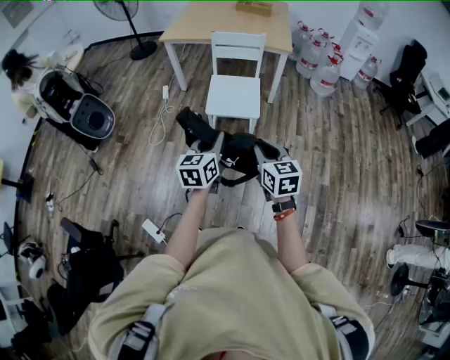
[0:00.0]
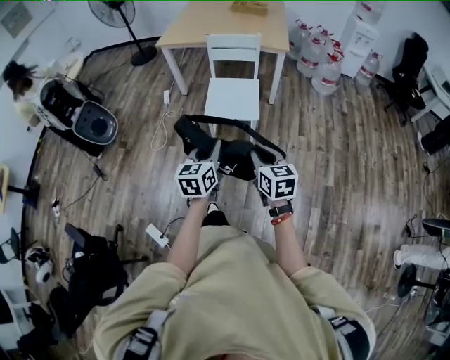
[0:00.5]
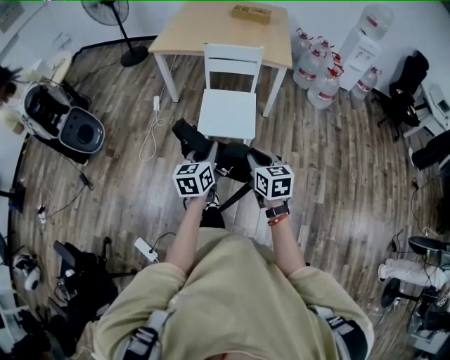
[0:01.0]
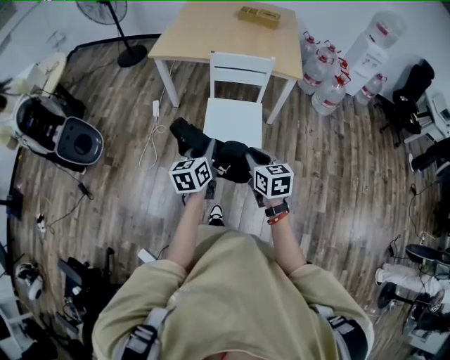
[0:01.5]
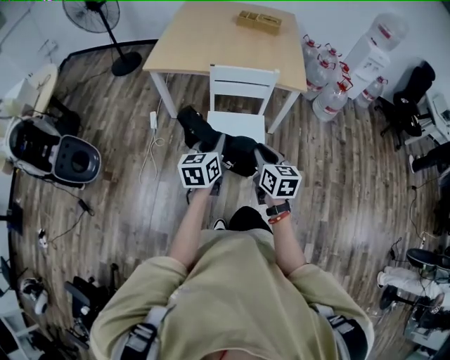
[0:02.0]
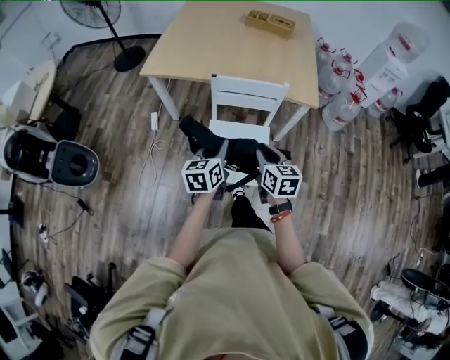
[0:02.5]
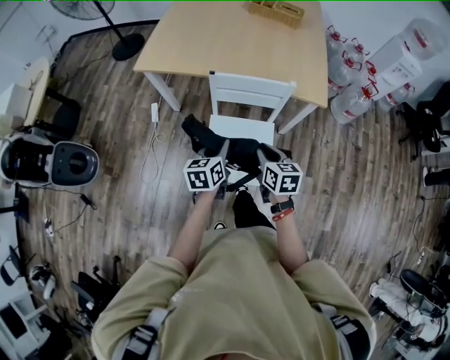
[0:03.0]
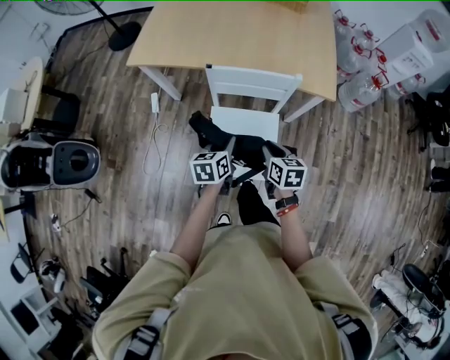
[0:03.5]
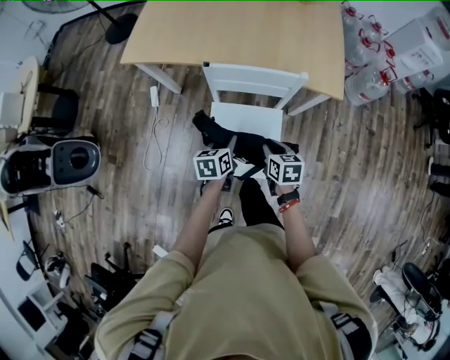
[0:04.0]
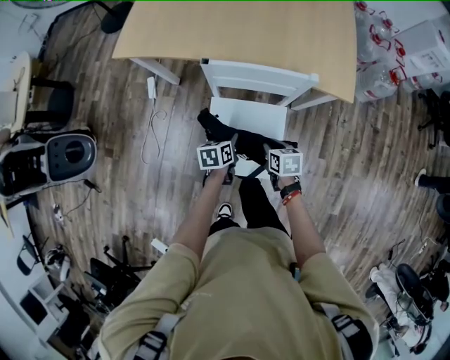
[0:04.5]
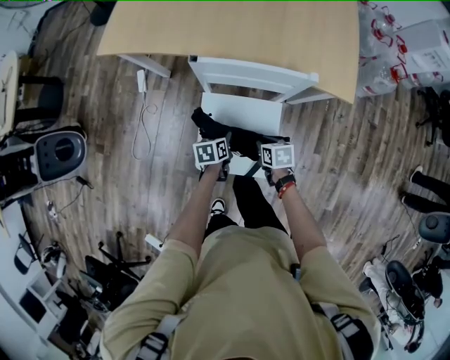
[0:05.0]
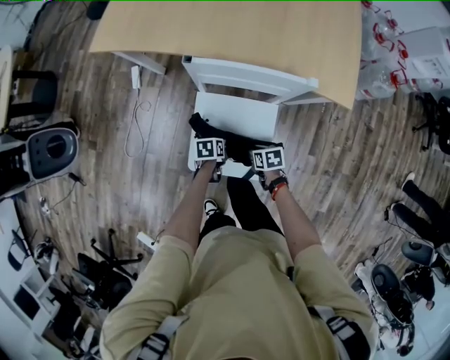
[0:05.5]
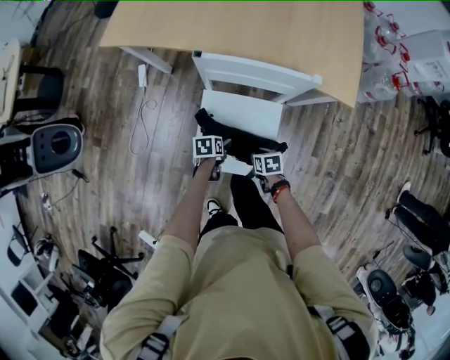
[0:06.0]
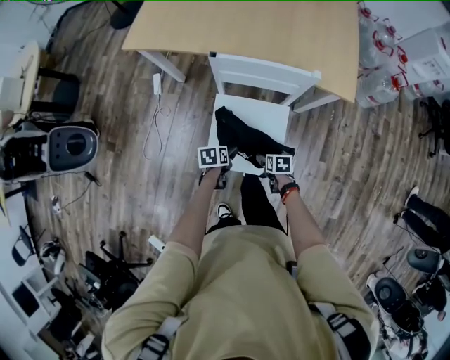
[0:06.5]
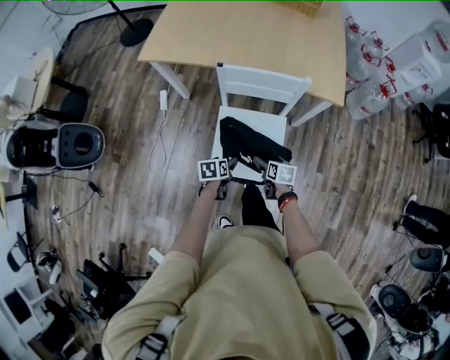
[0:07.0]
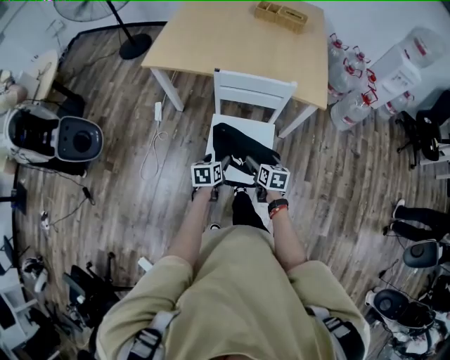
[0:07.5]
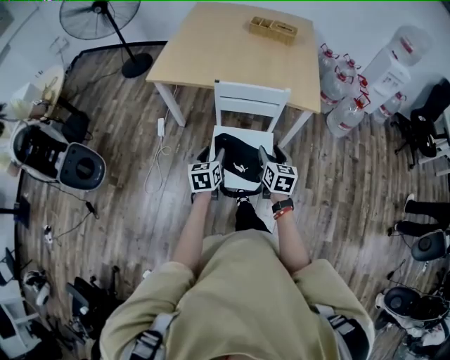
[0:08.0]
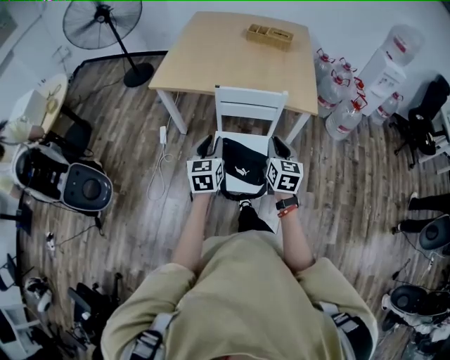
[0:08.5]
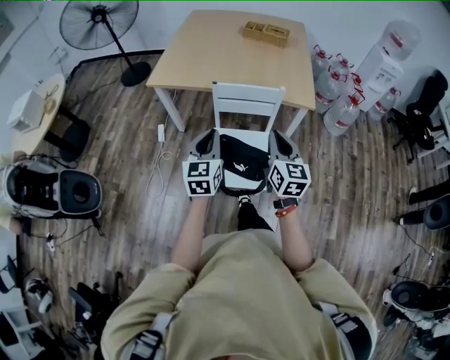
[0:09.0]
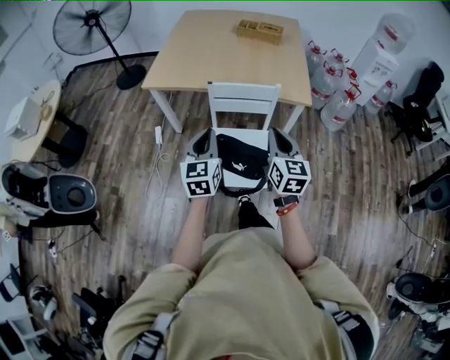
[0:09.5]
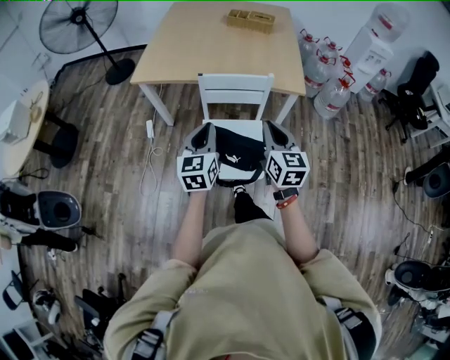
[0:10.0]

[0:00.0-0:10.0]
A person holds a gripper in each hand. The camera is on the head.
0:00.0 to 0:02.0: The pair of grippers is taken forward, approximately 50 cm.
0:02.0 to 0:04.0: Both grippers travel together forward and downward, about 35 cm. The right gripper changes its angle by roughly 30 degrees; the left gripper changes its angle by approximately 30 degrees.
0:04.0 to 0:06.0: Both grippers travel together downward, approximately 25 cm. The left gripper rotates approximately 30 degrees, and opens its fingers. Meanwhile the right gripper changes its angle by roughly 30 degrees.
0:06.0 to 0:08.0: The left gripper is displaced upward and backward by about 40 cm, and tilts its fingers about 30 degrees upward; the right gripper goes approximately 35 cm upward, tilts its fingers roughly 40 degrees upward, and opens, then closes again.
0:08.0 to 0:10.0: The grippers both shift upward by about 15 cm. The right gripper closes. The left gripper turns by about 20 degrees, and closes its fingers.

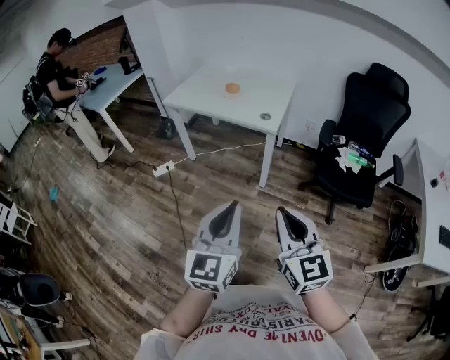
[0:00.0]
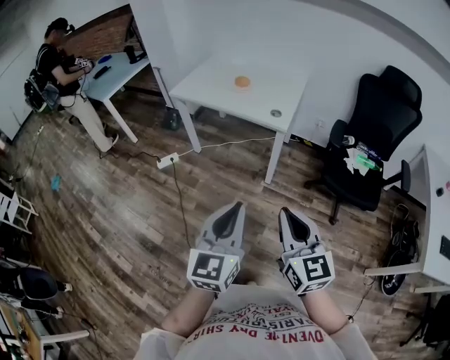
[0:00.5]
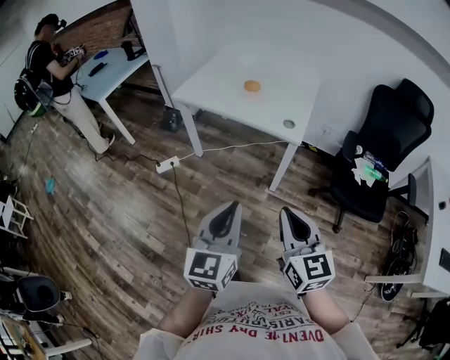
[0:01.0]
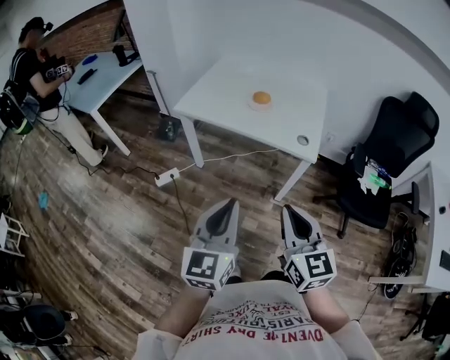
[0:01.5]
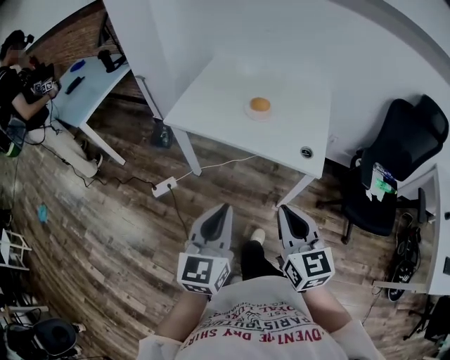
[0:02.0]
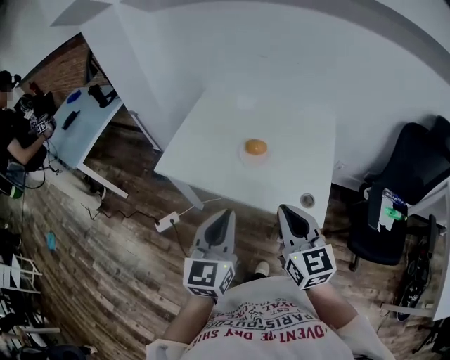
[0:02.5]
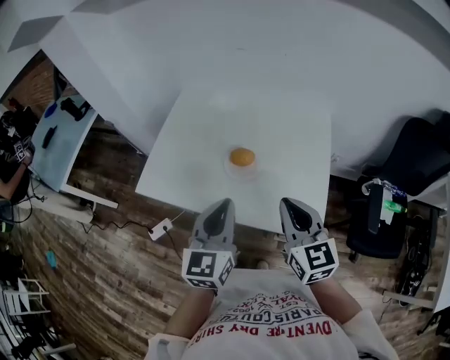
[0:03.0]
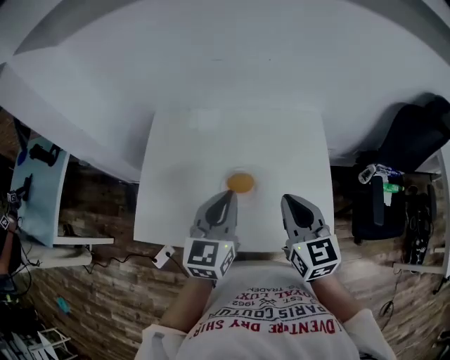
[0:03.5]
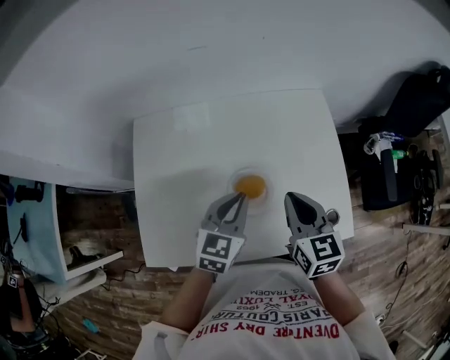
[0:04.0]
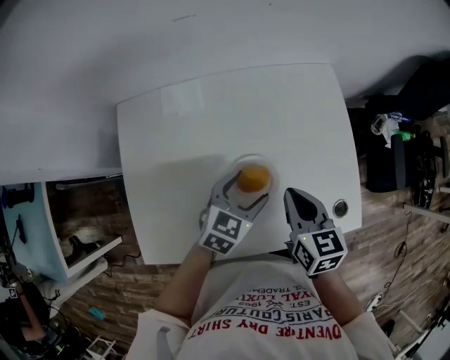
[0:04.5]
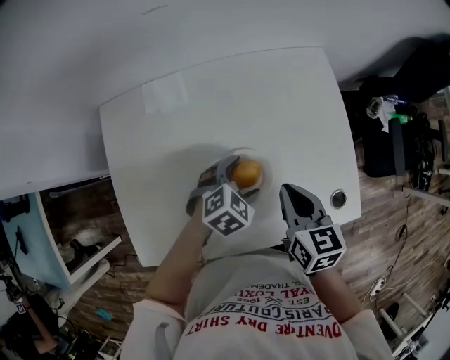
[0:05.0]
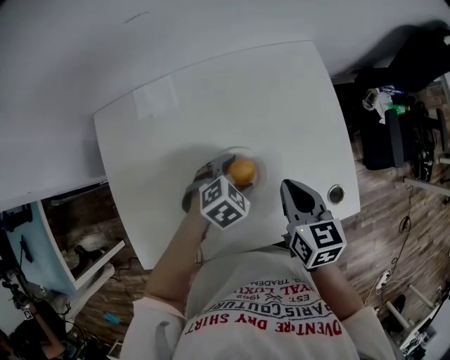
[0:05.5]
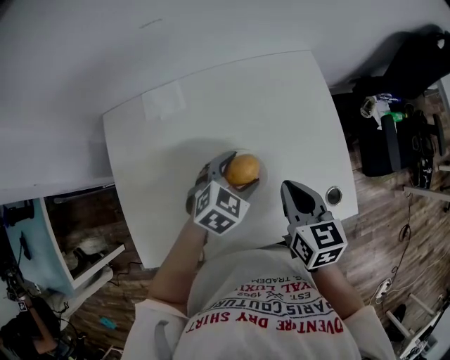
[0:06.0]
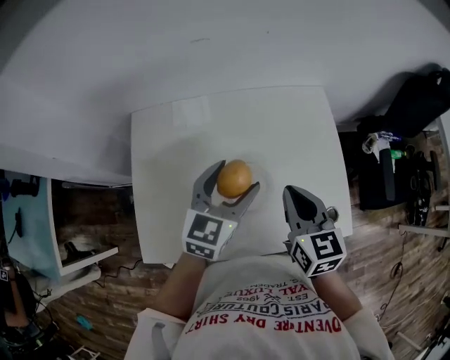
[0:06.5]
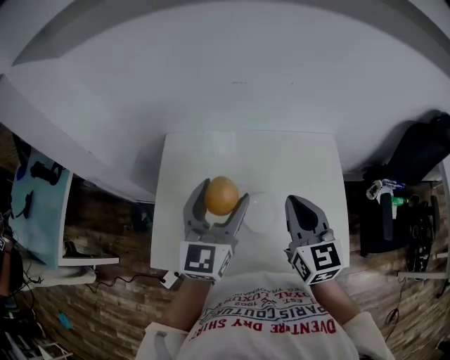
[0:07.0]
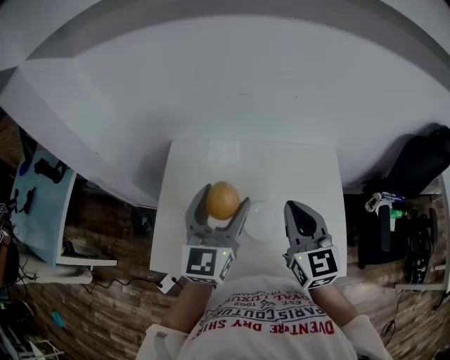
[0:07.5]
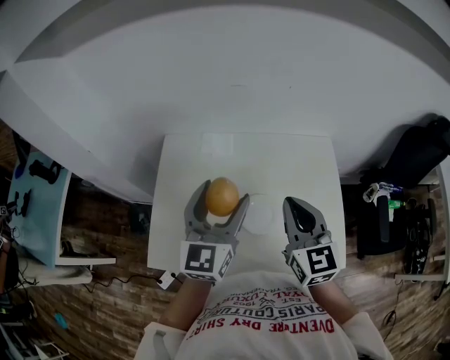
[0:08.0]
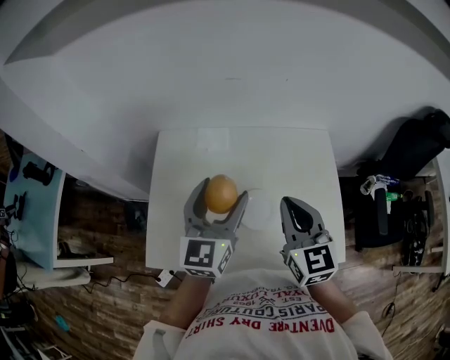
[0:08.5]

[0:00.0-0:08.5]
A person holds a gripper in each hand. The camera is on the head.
0:00.0 to 0:02.0: The two grippers travel together, forward and to the left, some 40 cm.
0:02.0 to 0:04.0: Both grippers are carried some 50 cm. The right gripper turns by roughly 30 degrees; the left gripper changes its angle by some 40 degrees.
0:04.0 to 0:06.5: The left gripper moves some 15 cm downward and comes back, and opens. Meanwhile the right gripper travels downward and back again, approximately 10 cm each way.
0:06.5 to 0:08.5: The left gripper moves upward and to the left, roughly 10 cm, and turns by approximately 30 degrees. The right gripper goes roughly 10 cm upward.

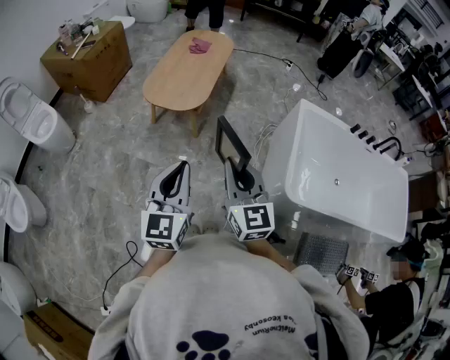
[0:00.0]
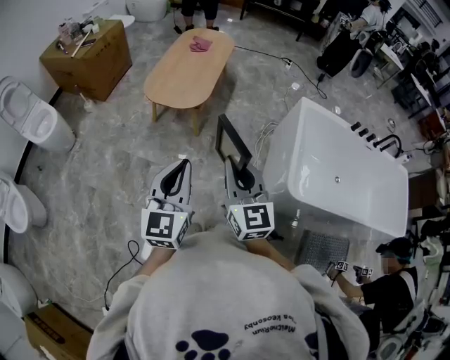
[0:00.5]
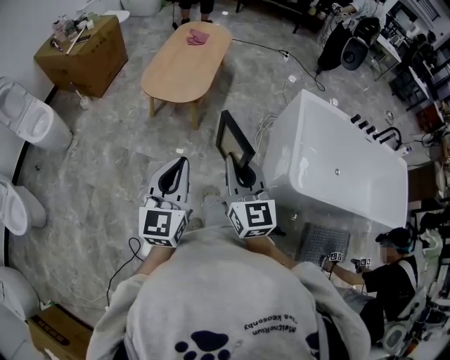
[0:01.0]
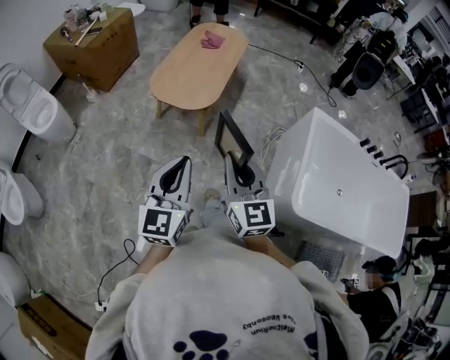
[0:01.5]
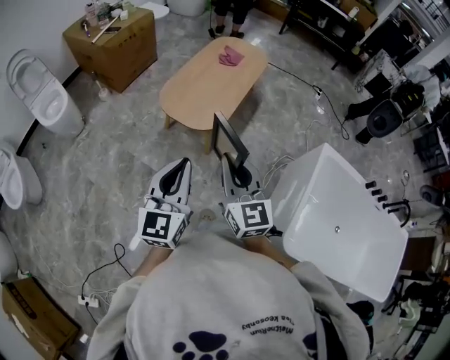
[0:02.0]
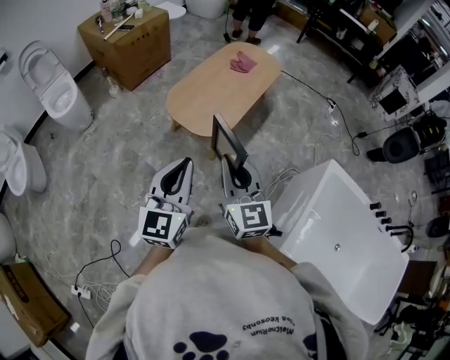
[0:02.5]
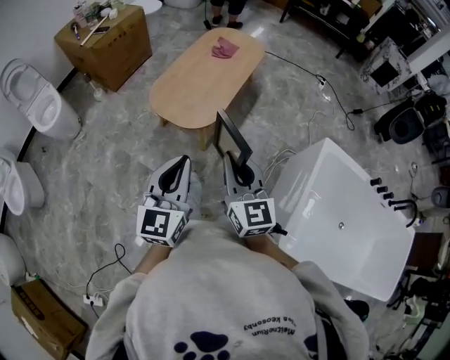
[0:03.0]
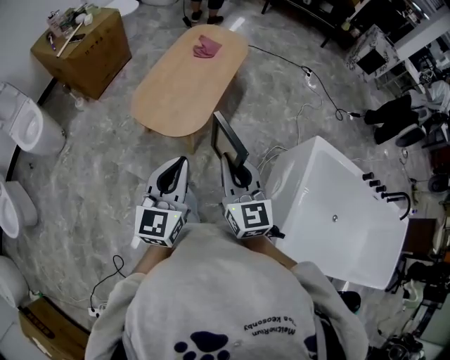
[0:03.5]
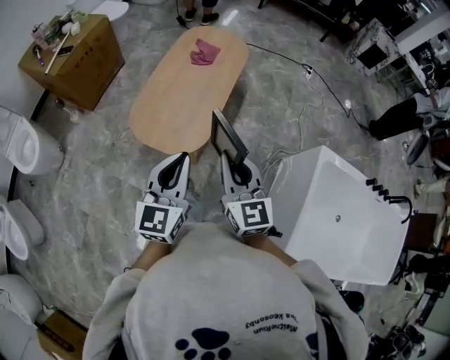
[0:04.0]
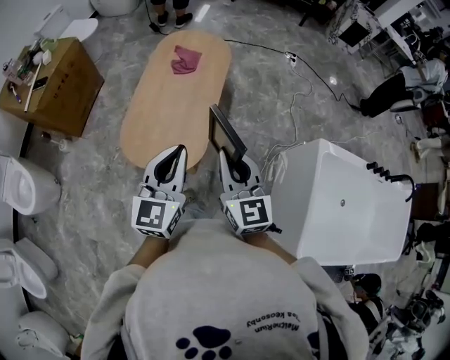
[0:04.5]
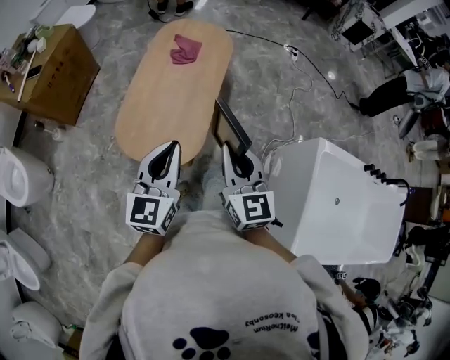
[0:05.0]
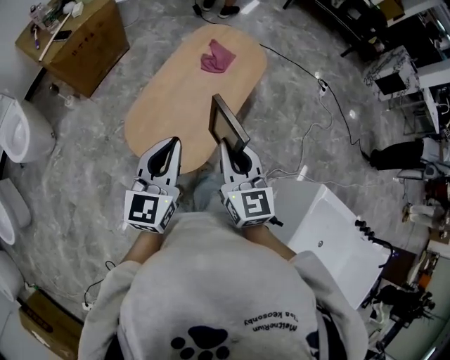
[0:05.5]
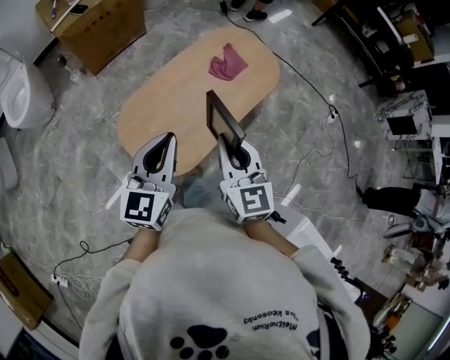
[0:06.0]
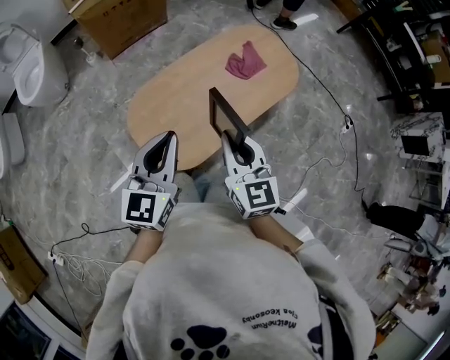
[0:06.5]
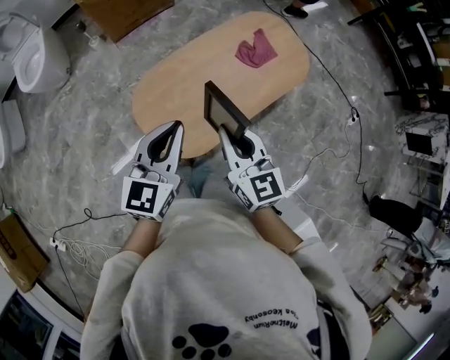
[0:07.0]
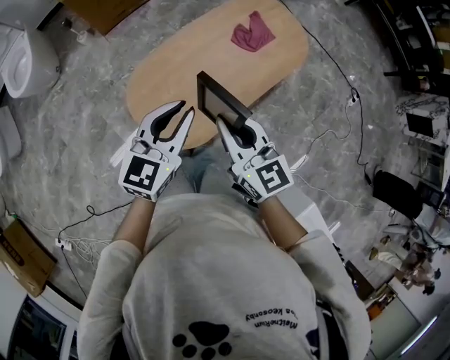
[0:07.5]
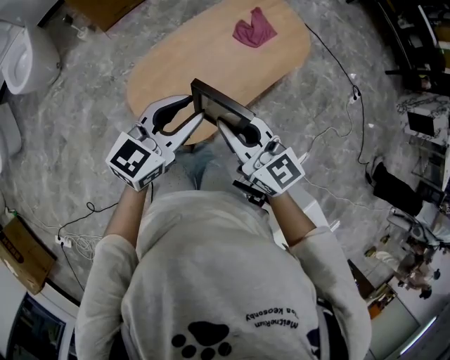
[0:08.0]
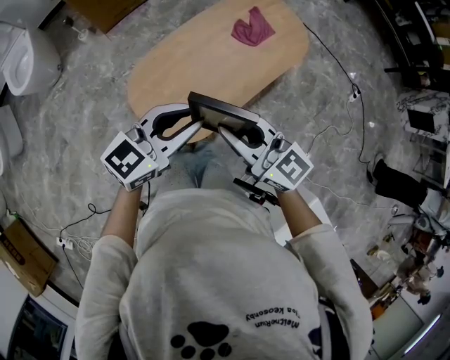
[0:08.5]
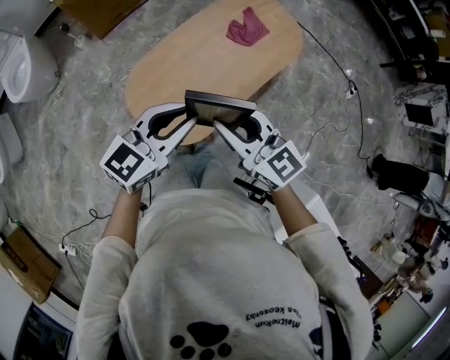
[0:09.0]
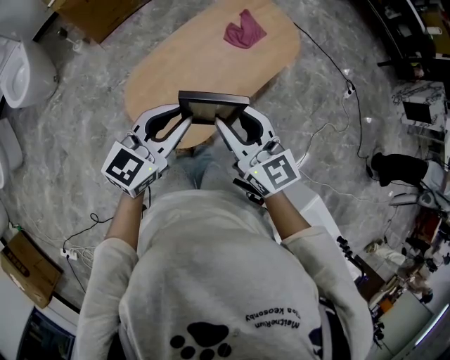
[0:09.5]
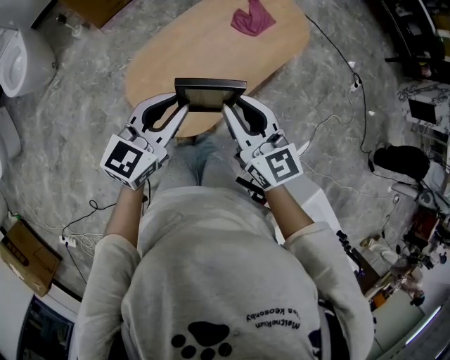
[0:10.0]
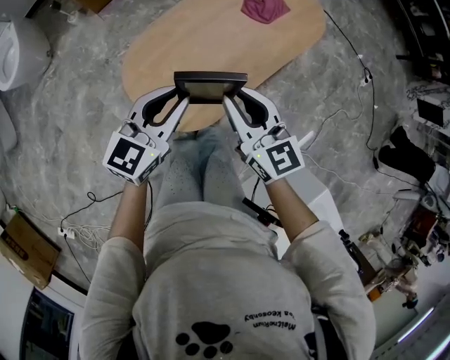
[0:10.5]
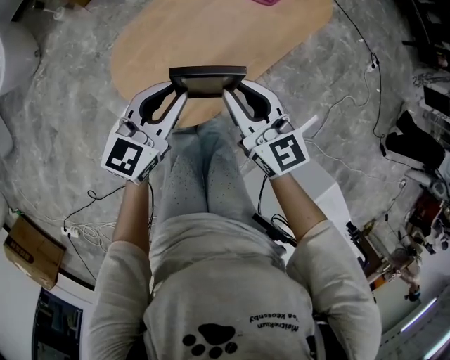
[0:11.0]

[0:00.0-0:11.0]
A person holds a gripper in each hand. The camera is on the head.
0:00.0 to 0:02.0: Both grippers move forward, some 20 cm.
0:02.0 to 0:03.5: The two grippers go approximately 15 cm forward and to the right.
0:03.5 to 0:05.5: Both grippers move forward, approximately 30 cm.
0:05.5 to 0:07.5: Both grippers move forward and downward, roughly 10 cm. The right gripper swivels roughly 30 degrees.
0:07.5 to 0:09.0: The left gripper rotates some 20 degrees.
0:09.0 to 0:11.0: Both grippers travel together downward, about 15 cm.
